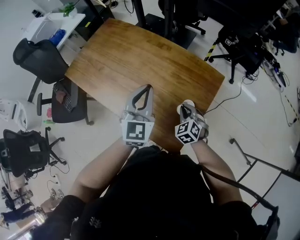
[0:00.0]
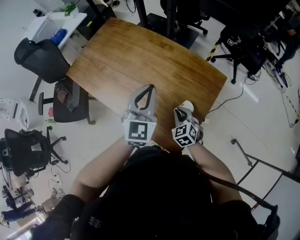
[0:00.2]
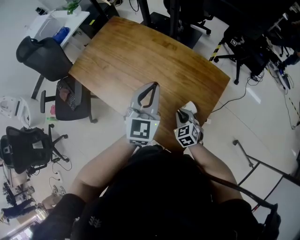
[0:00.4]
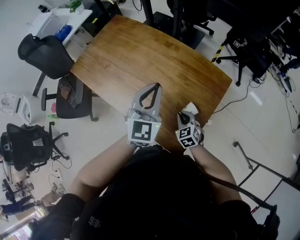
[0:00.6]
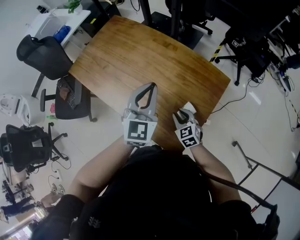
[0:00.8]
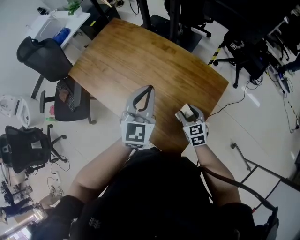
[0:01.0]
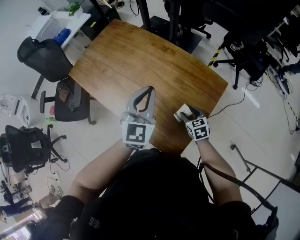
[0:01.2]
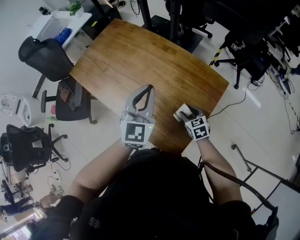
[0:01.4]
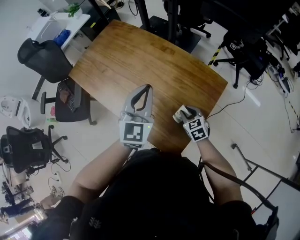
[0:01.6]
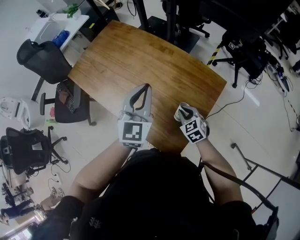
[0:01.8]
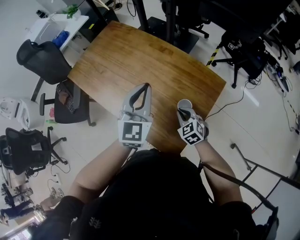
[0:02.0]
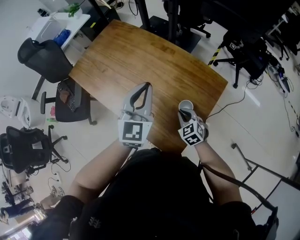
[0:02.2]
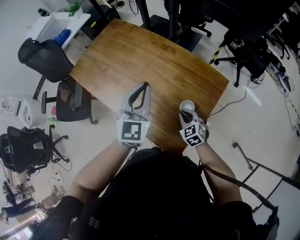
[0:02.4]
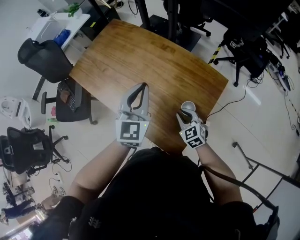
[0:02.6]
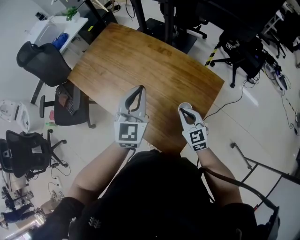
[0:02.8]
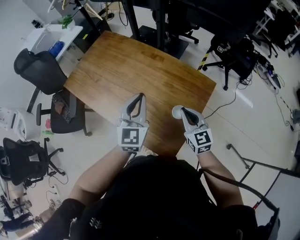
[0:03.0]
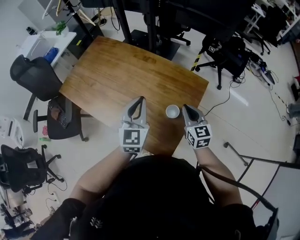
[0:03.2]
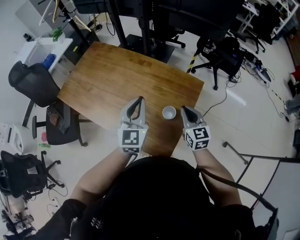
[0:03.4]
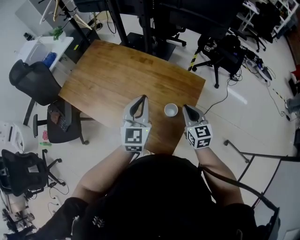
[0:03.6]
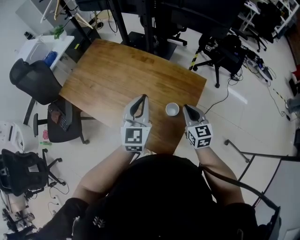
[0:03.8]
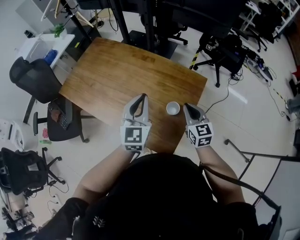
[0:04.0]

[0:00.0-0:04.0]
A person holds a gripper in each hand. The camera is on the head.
0:00.0 to 0:01.4: The right gripper rotates approximately 30 degrees, and opens.
0:01.4 to 0:02.6: The right gripper changes place by about 5 cm, and closes its fingers.
0:02.6 to 0:04.0: The left gripper changes place by approximately 5 cm; the right gripper heads upward and to the right, covering about 15 cm, and changes its angle by approximately 30 degrees.

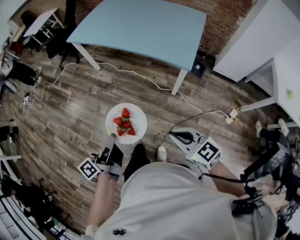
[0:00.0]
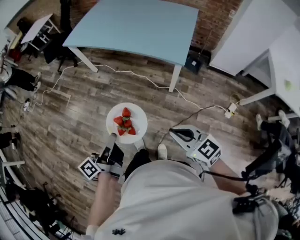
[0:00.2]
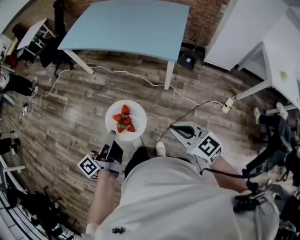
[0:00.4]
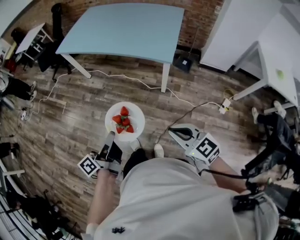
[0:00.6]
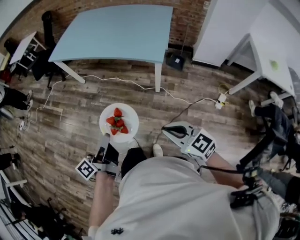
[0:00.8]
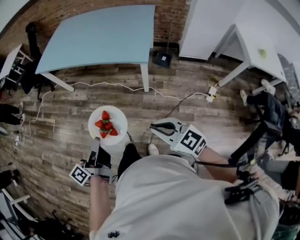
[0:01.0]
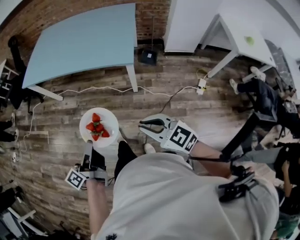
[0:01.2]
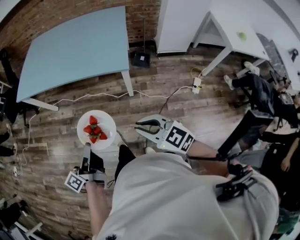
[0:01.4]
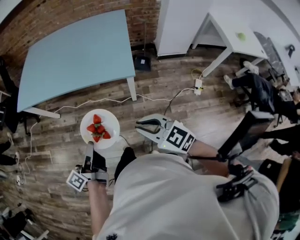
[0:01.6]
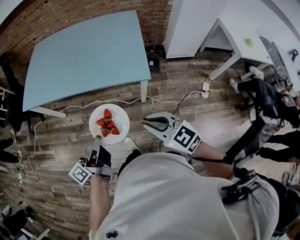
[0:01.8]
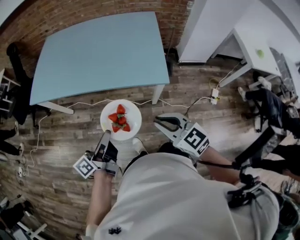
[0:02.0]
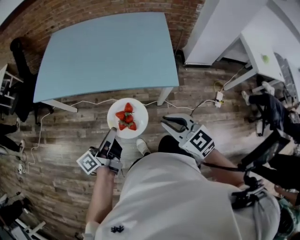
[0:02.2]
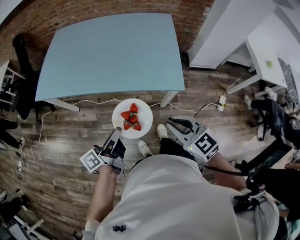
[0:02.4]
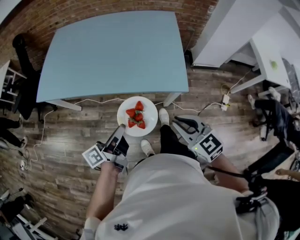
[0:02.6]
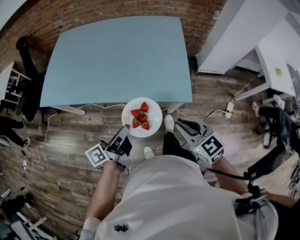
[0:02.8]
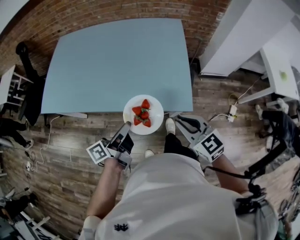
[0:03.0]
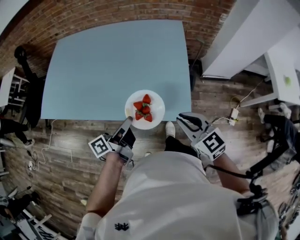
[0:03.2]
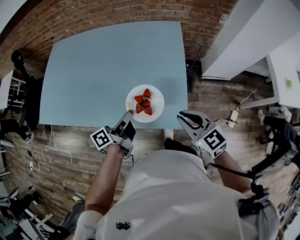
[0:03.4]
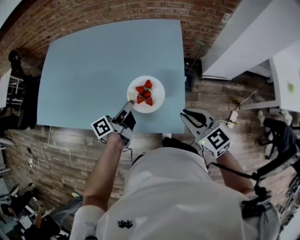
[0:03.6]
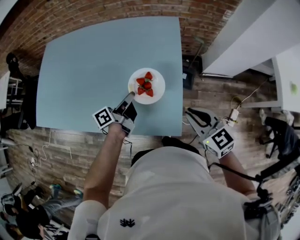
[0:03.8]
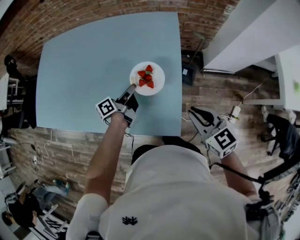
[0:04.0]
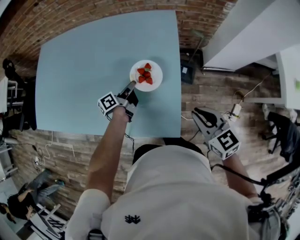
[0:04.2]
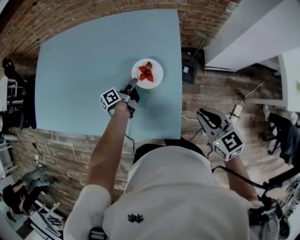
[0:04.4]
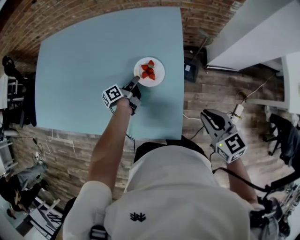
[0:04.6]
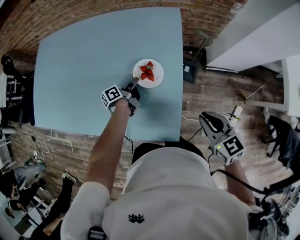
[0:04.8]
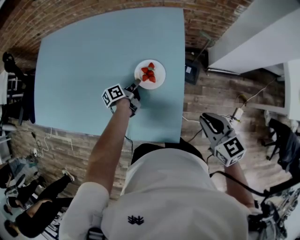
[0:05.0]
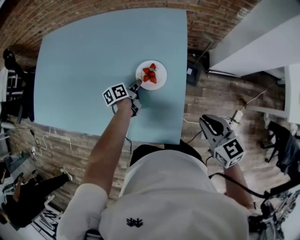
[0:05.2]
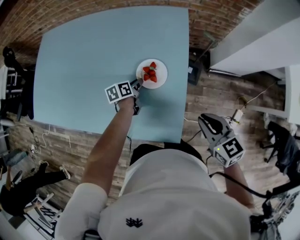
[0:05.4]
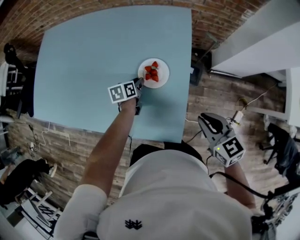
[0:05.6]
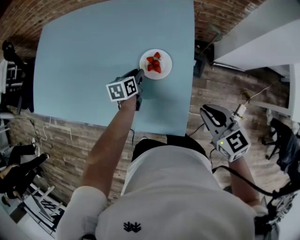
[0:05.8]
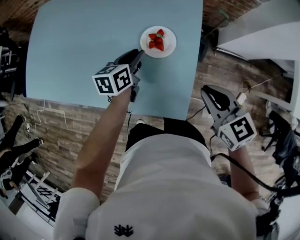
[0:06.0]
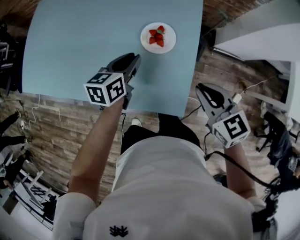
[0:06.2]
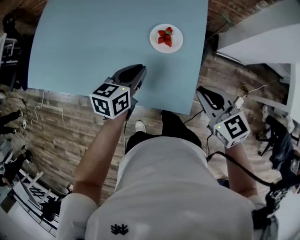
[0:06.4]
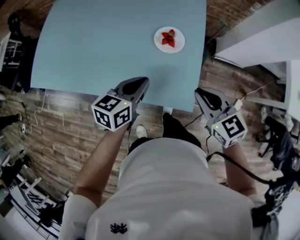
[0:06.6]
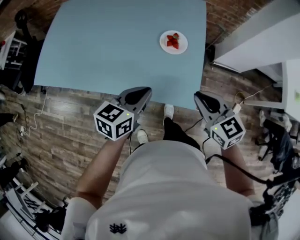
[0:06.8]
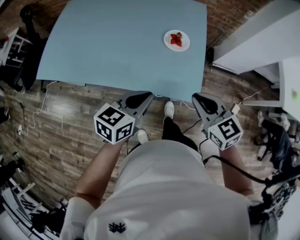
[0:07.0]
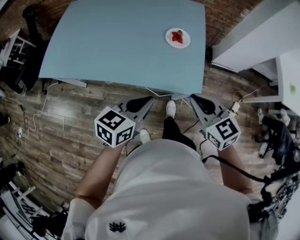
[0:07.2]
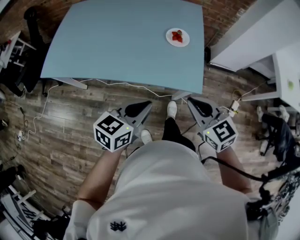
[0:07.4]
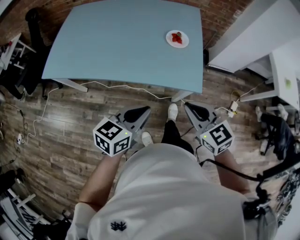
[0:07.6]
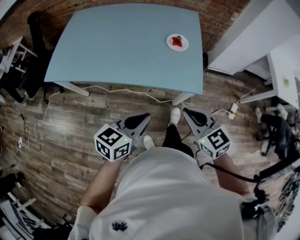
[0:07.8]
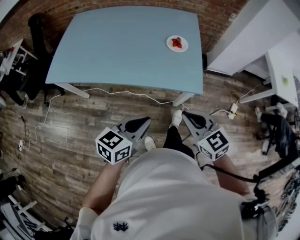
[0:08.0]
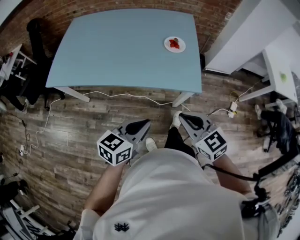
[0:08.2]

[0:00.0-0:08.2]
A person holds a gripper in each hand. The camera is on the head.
0:00.0 to 0:01.6: The two grippers go about 15 cm forward and to the right.
0:01.6 to 0:03.2: Both grippers travel together forward, some 35 cm.
0:03.2 to 0:05.0: The right gripper moves to the right and forward, some 20 cm. Meanwhile the left gripper is displaced forward and downward by about 35 cm, and changes its angle by some 30 degrees.
0:05.0 to 0:06.6: The right gripper is displaced to the left by some 10 cm. Meanwhile the left gripper moves backward and upward, approximately 25 cm, and twists approximately 50 degrees clockwise, seen from behind.
0:06.6 to 0:08.2: The right gripper heads backward and to the left, covering roughly 30 cm. The left gripper shifts approximately 30 cm backward.

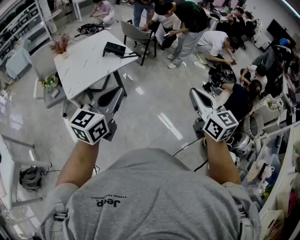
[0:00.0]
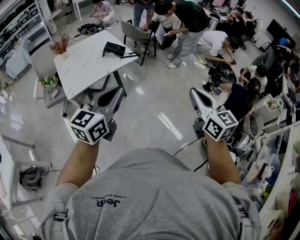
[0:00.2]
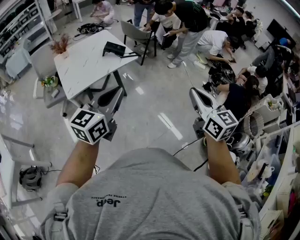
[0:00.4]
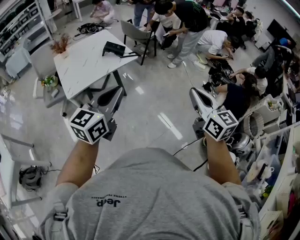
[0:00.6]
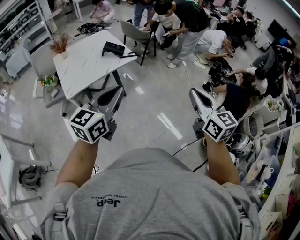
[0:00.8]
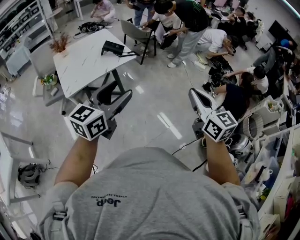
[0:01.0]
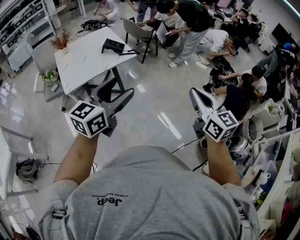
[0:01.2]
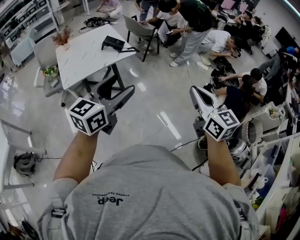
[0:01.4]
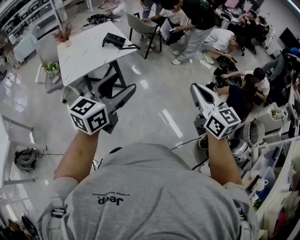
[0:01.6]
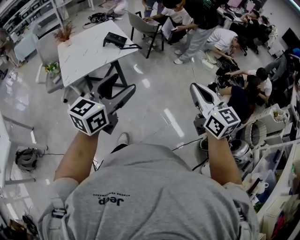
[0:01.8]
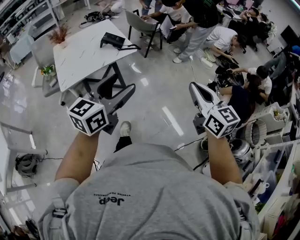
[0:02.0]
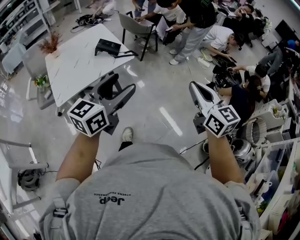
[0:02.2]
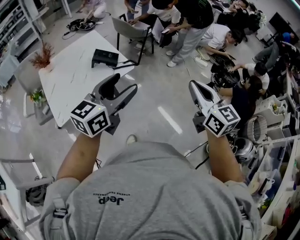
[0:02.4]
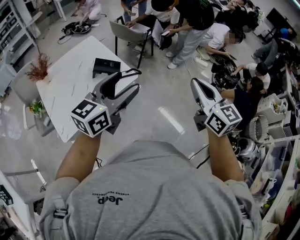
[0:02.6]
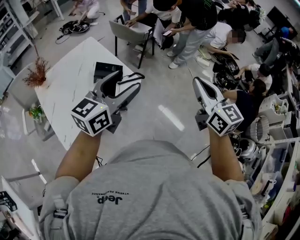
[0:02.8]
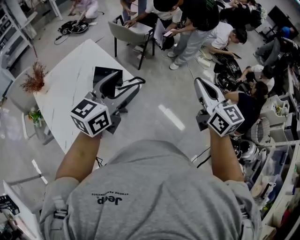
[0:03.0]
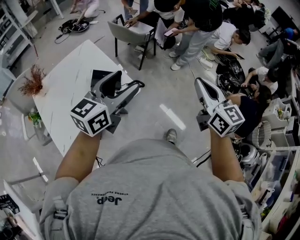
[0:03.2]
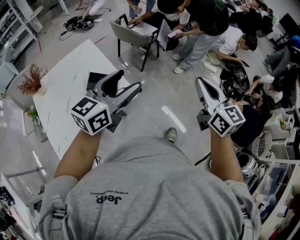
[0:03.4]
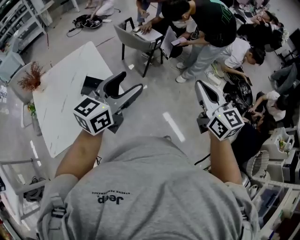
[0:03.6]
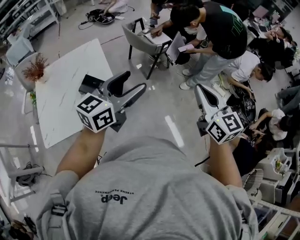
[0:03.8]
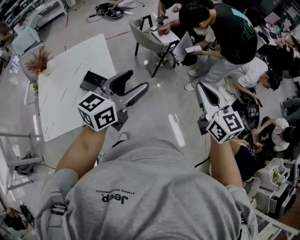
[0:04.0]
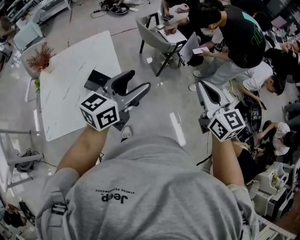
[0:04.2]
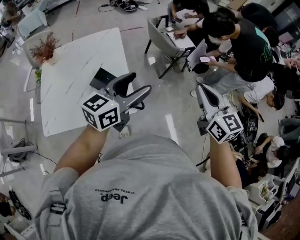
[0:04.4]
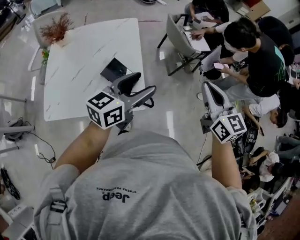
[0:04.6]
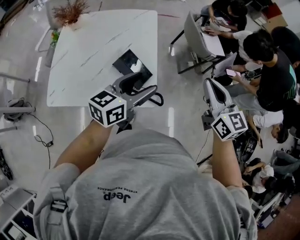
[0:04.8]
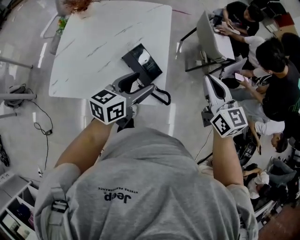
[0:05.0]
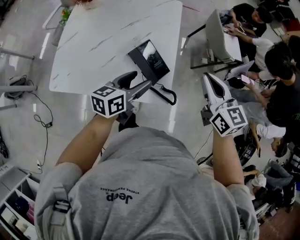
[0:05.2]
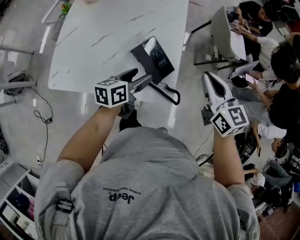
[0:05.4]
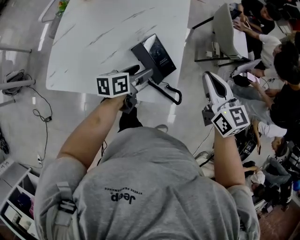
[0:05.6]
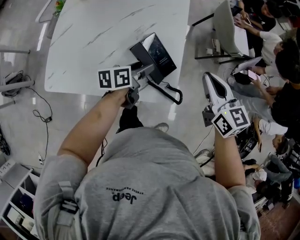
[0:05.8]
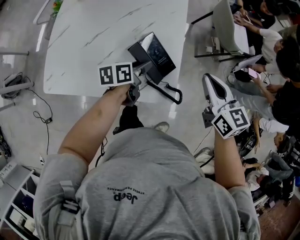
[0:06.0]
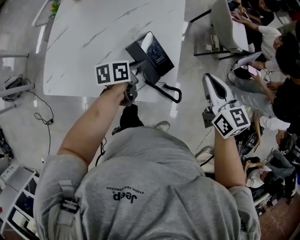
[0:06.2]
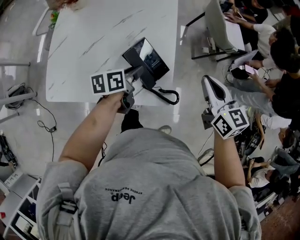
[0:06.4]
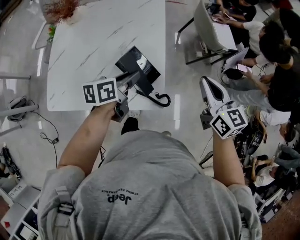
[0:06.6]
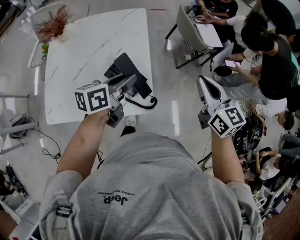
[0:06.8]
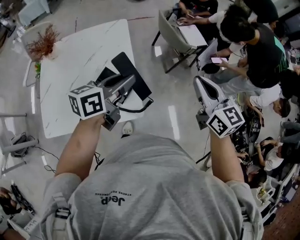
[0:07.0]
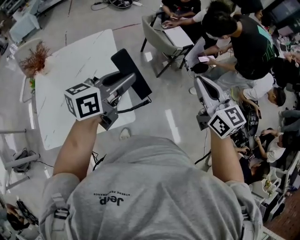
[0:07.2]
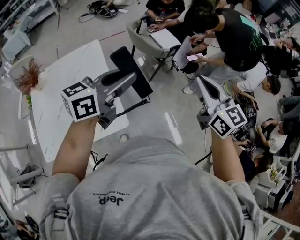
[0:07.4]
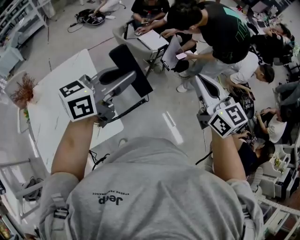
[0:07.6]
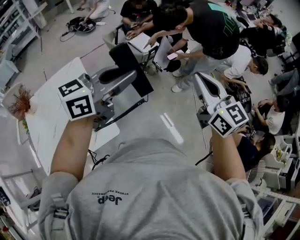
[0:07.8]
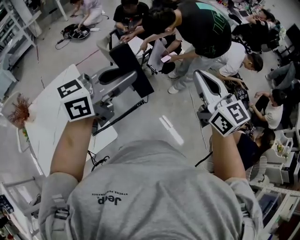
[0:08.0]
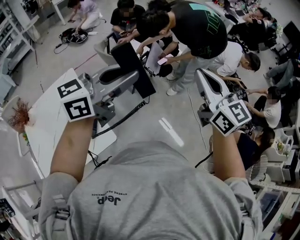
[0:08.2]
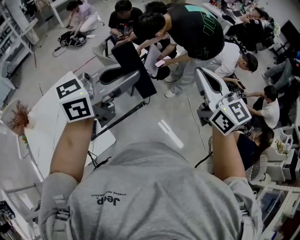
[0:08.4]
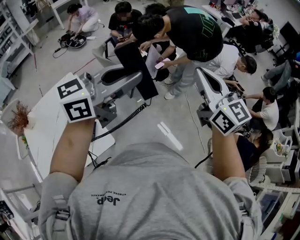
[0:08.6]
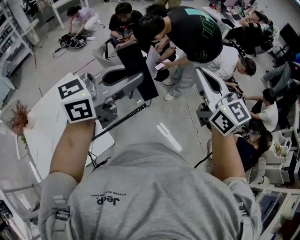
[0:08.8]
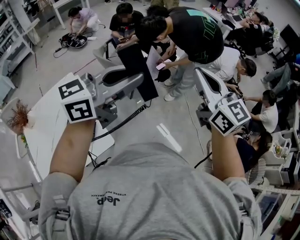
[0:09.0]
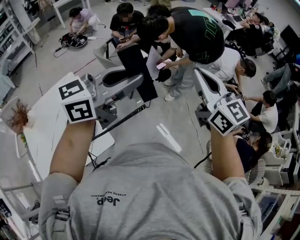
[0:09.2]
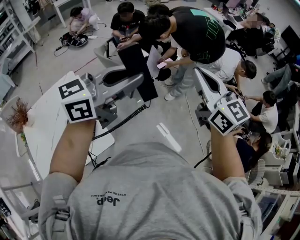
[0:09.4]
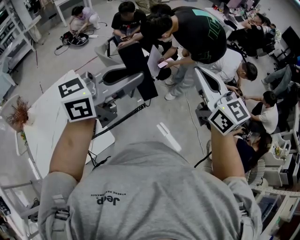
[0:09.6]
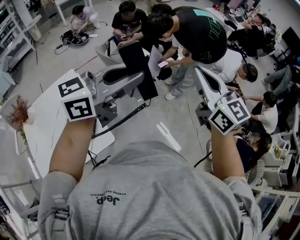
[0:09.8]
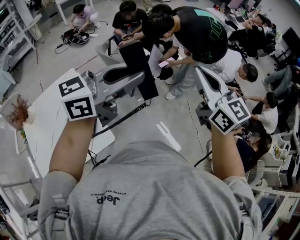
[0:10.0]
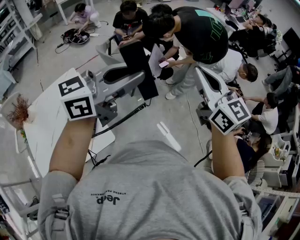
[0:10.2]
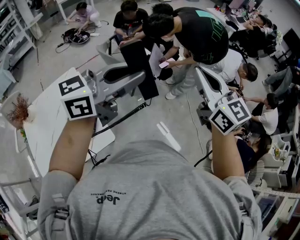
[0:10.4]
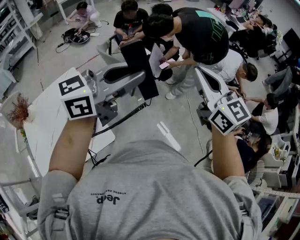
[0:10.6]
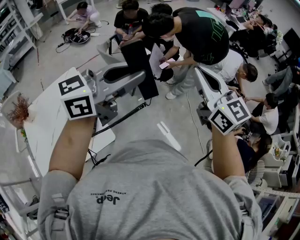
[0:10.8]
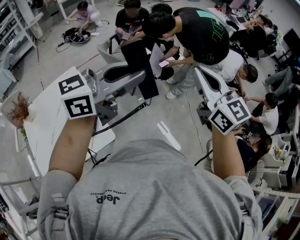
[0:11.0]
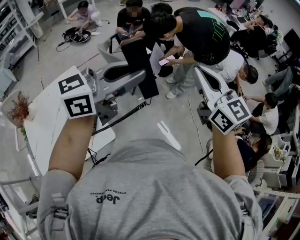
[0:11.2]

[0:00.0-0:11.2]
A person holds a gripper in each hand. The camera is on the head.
0:00.0 to 0:01.6: The two grippers go about 10 cm to the right. The left gripper opens up.
0:01.6 to 0:03.2: The pair of grippers is taken forward, approximately 50 cm.
0:03.2 to 0:04.8: The left gripper shifts by some 20 cm, and rotates roughly 40 degrees. Meanwhile the right gripper changes place by roughly 30 cm, and turns by roughly 40 degrees.
0:04.8 to 0:06.4: The left gripper shifts some 20 cm downward and to the left, swivels roughly 40 degrees, and closes up. Meanwhile the right gripper travels downward and to the left by some 15 cm.
0:06.4 to 0:08.0: The right gripper changes place by roughly 40 cm, and changes its angle by approximately 40 degrees. The left gripper is displaced upward by approximately 40 cm, and tips its fingers upward by some 30 degrees.
0:08.0 to 0:09.6: The grippers stay close to where they were, moving slightly.
0:09.6 to 0:11.2: Both grippers stay put.
